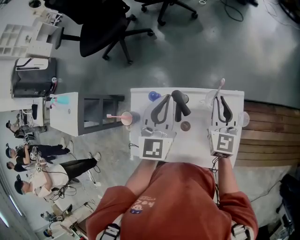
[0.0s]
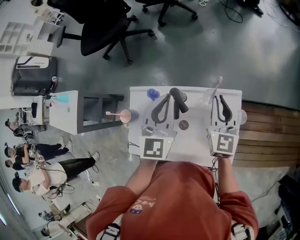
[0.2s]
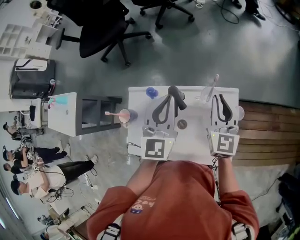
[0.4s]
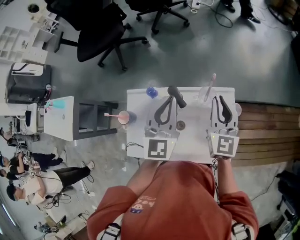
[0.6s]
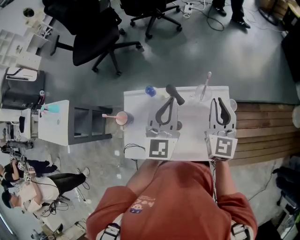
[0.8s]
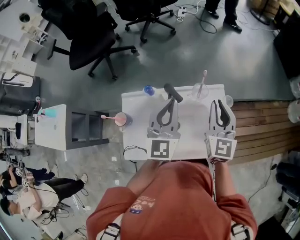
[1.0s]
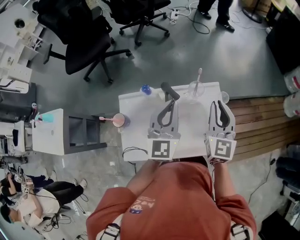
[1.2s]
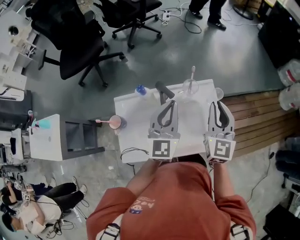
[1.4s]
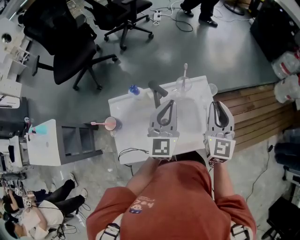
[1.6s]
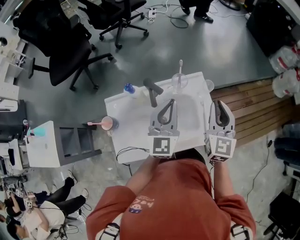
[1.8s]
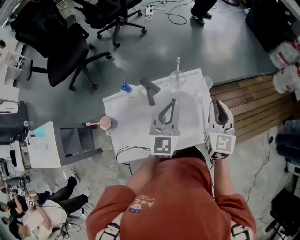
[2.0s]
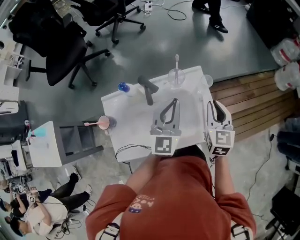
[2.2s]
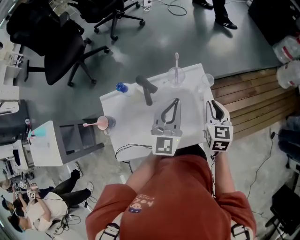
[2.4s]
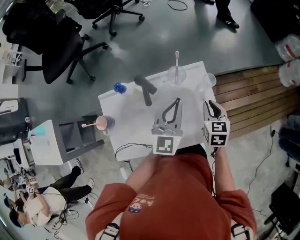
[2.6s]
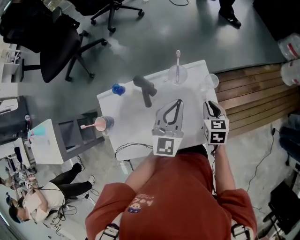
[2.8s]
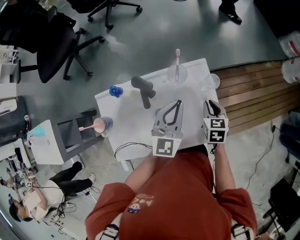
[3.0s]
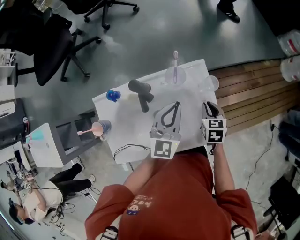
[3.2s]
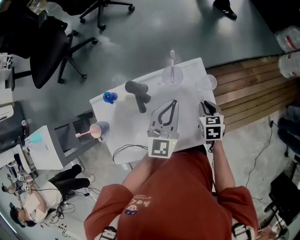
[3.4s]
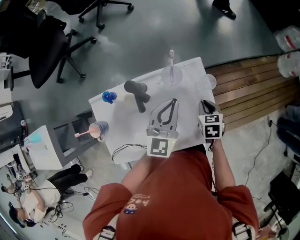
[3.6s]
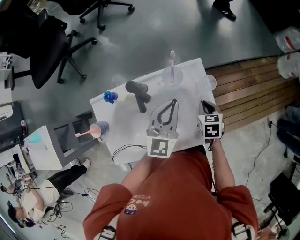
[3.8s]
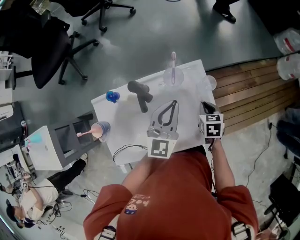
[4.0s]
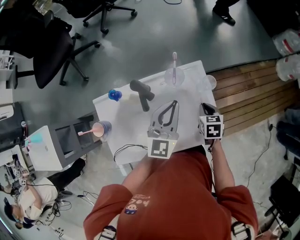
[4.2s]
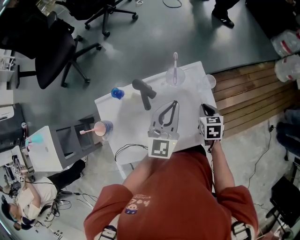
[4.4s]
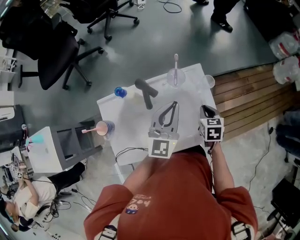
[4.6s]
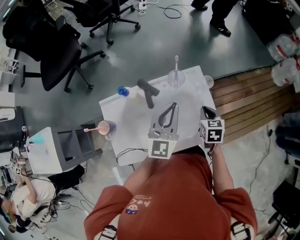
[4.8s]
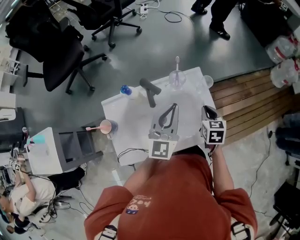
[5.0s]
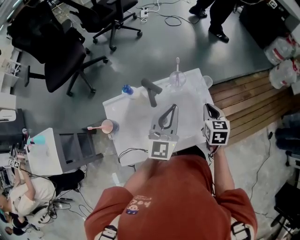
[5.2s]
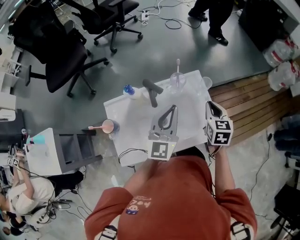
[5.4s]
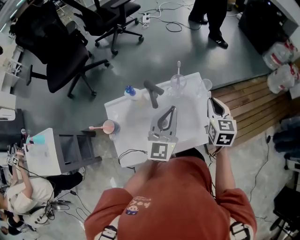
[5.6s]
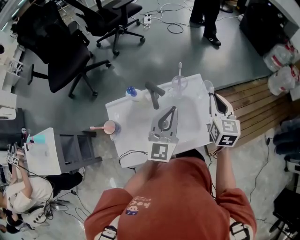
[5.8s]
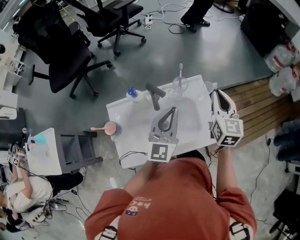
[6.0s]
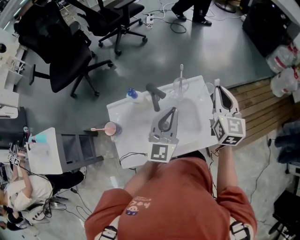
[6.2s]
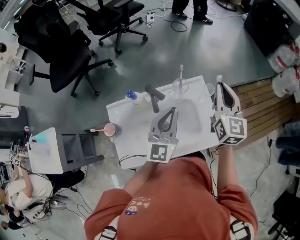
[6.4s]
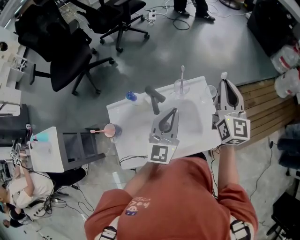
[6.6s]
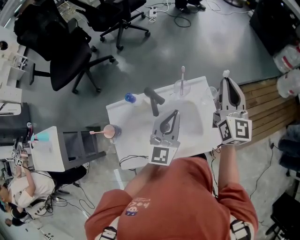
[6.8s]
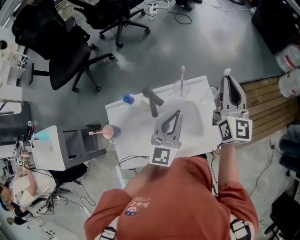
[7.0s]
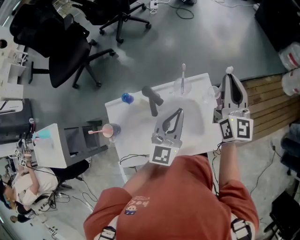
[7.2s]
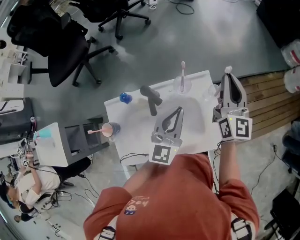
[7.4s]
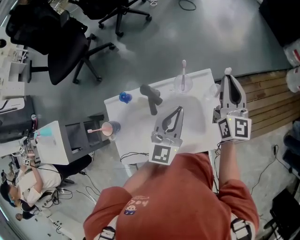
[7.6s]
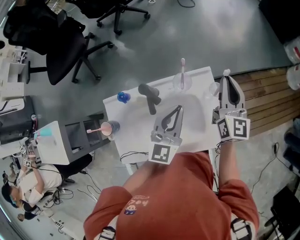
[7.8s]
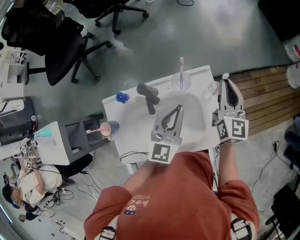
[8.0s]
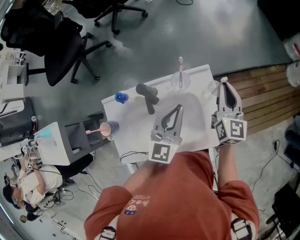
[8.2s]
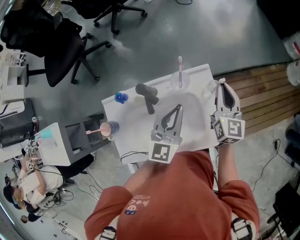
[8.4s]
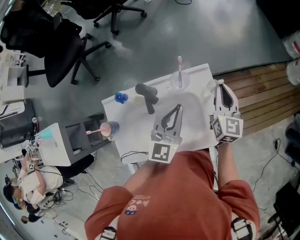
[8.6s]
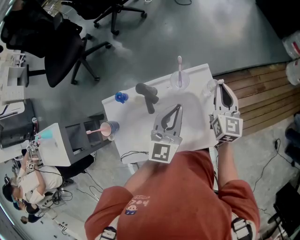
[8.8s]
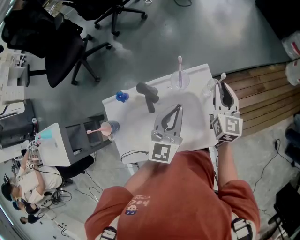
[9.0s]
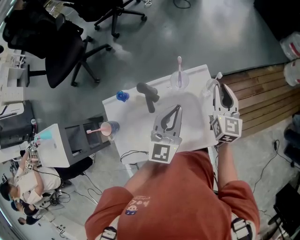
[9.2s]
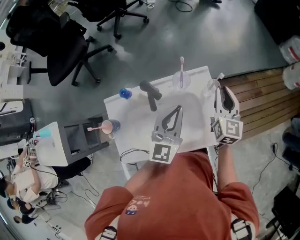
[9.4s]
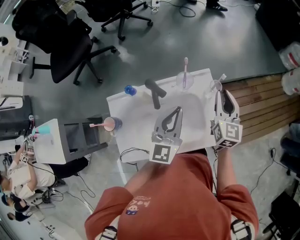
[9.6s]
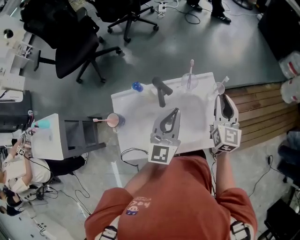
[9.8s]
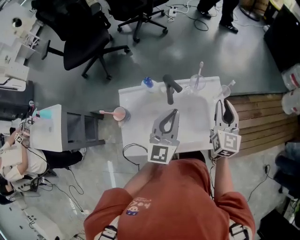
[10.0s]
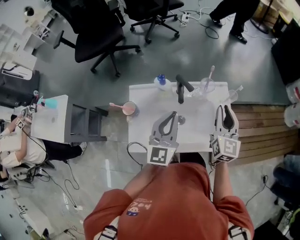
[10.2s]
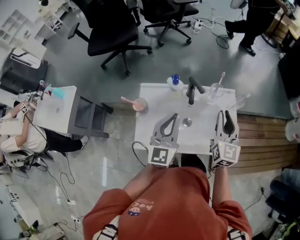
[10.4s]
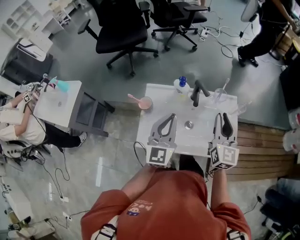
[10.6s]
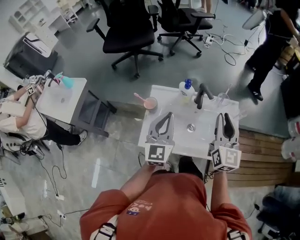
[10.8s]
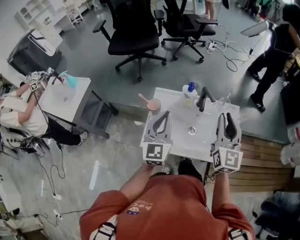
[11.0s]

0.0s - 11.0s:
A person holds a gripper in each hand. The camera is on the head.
0.0s - 1.6s: The left gripper goes some 15 cm backward and to the right, while the right gripper travels backward, upward and to the right by approximately 25 cm, and swivels about 20 degrees.
1.6s - 3.2s: The left gripper heads downward, forward and to the right, covering about 15 cm. Meanwhile the right gripper shifts about 25 cm downward, and angles its fingers downward, by about 40 degrees.
3.2s - 4.8s: Both grippers travel together upward, roughly 5 cm.
4.8s - 6.2s: The right gripper goes approximately 20 cm upward, and tips its fingers upward by approximately 40 degrees. Meanwhile the left gripper changes place by approximately 5 cm.
6.2s - 7.8s: The grippers both shift forward and downward by some 10 cm.
7.8s - 9.4s: The right gripper shifts by some 5 cm.
9.4s - 11.0s: The right gripper changes place by some 35 cm, and changes its angle by roughly 30 degrees, while the left gripper shifts by some 35 cm, and turns by approximately 30 degrees.

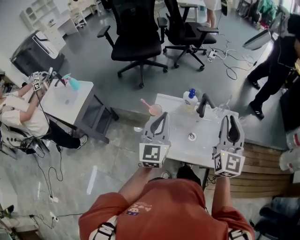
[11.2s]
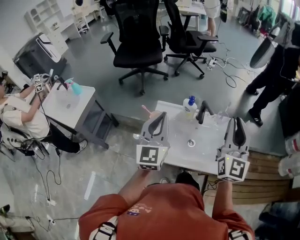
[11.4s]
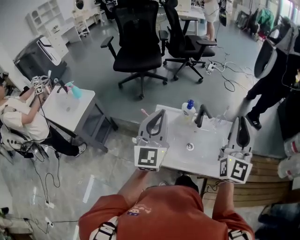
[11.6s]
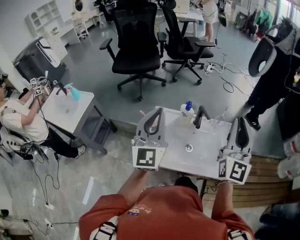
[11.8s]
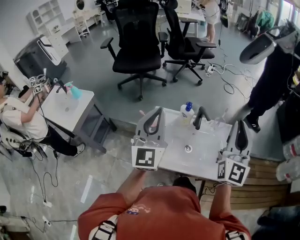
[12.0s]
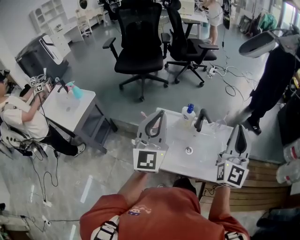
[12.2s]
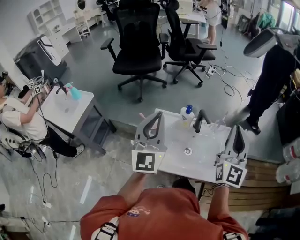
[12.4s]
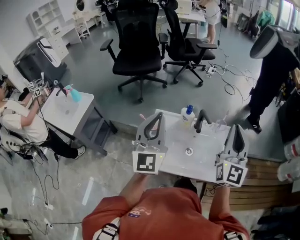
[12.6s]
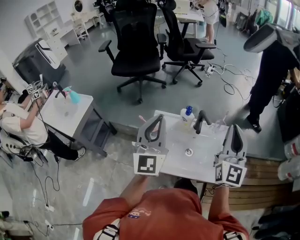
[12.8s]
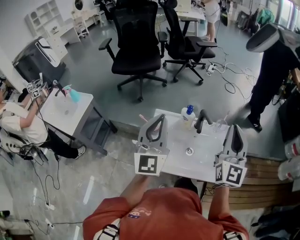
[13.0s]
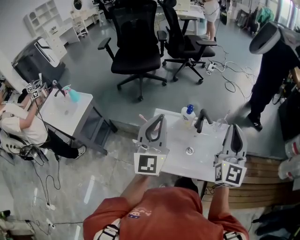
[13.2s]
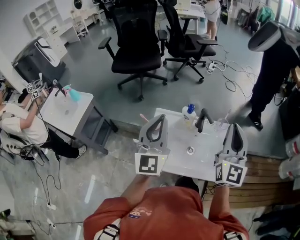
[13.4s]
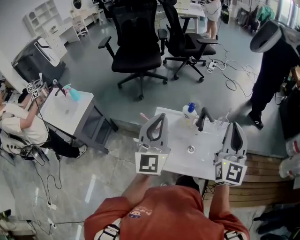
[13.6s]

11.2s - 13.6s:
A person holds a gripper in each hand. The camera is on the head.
11.2s - 12.4s: The left gripper is displaced upward by some 10 cm, while the right gripper shifts about 5 cm upward.
12.4s - 13.6s: The grippers move only a little.

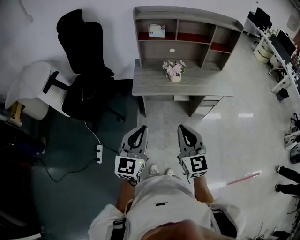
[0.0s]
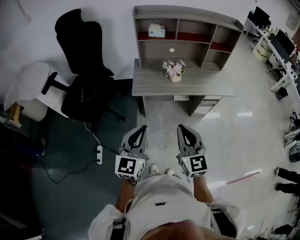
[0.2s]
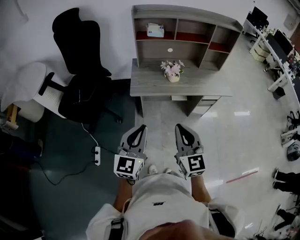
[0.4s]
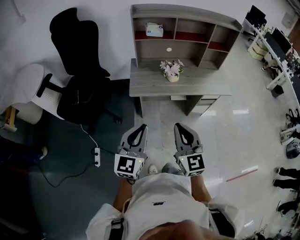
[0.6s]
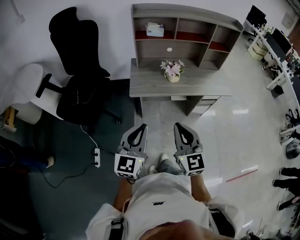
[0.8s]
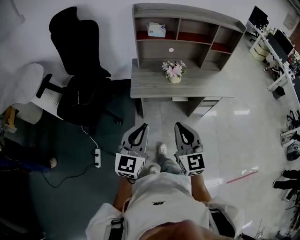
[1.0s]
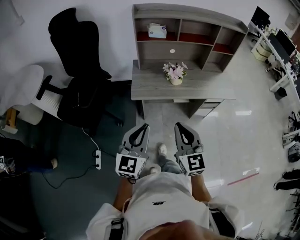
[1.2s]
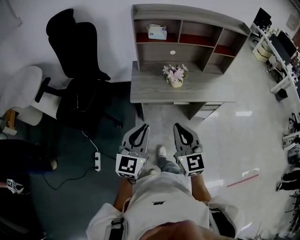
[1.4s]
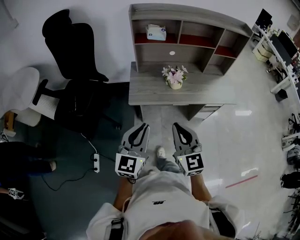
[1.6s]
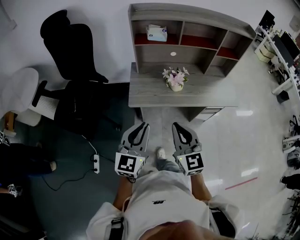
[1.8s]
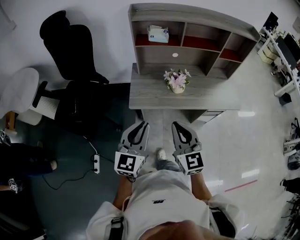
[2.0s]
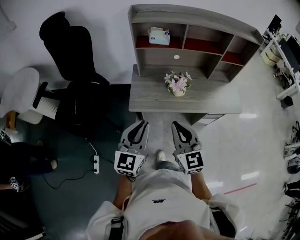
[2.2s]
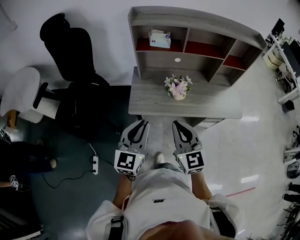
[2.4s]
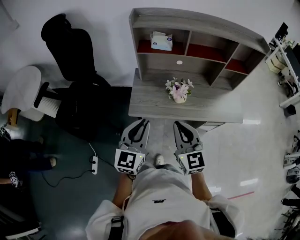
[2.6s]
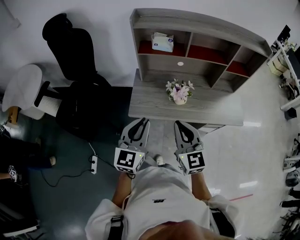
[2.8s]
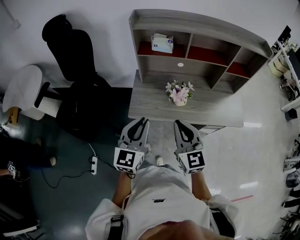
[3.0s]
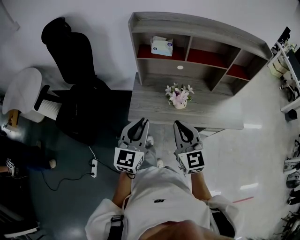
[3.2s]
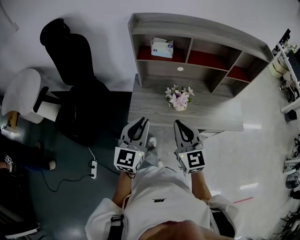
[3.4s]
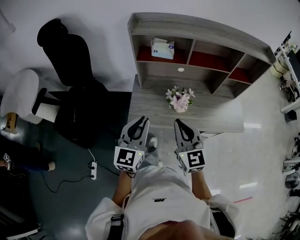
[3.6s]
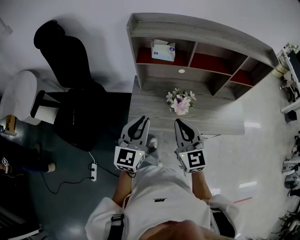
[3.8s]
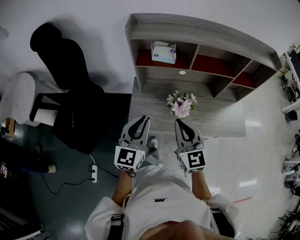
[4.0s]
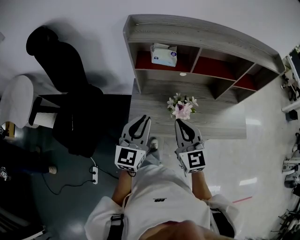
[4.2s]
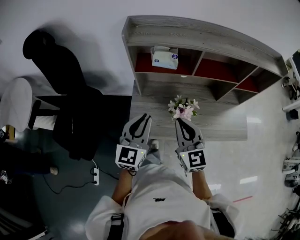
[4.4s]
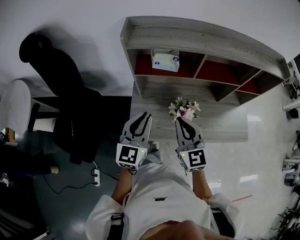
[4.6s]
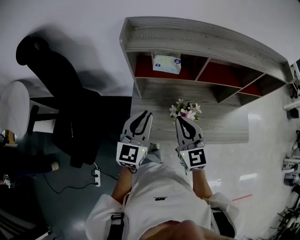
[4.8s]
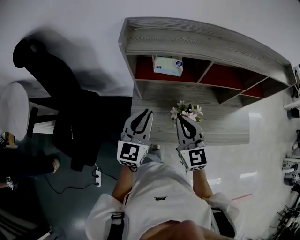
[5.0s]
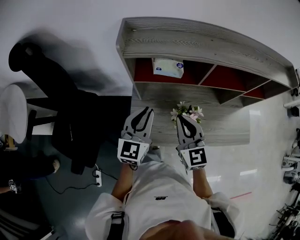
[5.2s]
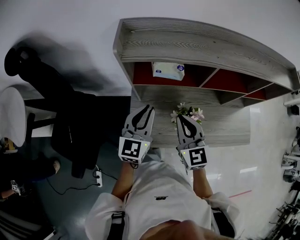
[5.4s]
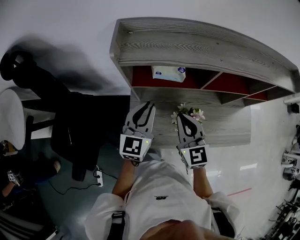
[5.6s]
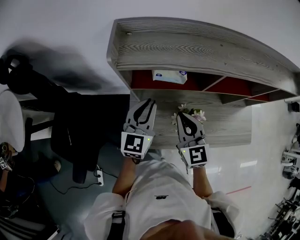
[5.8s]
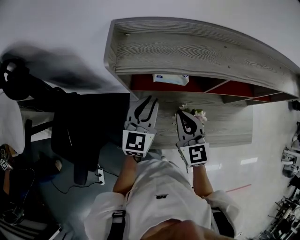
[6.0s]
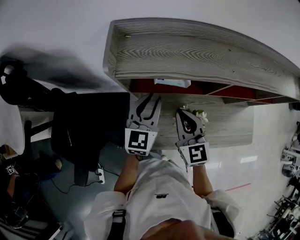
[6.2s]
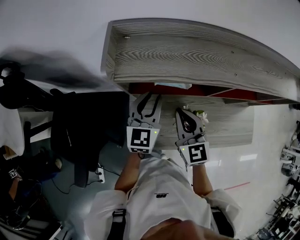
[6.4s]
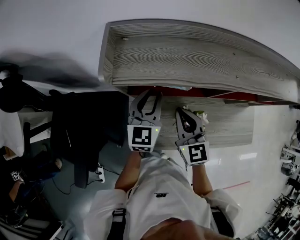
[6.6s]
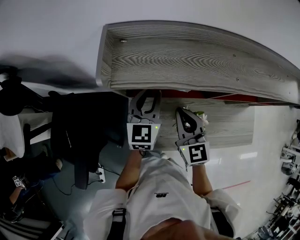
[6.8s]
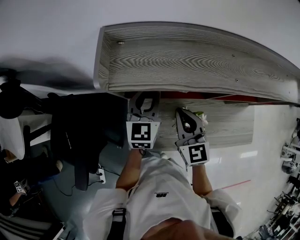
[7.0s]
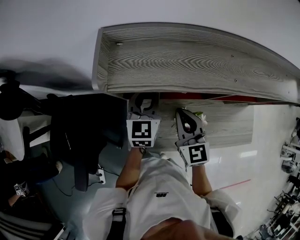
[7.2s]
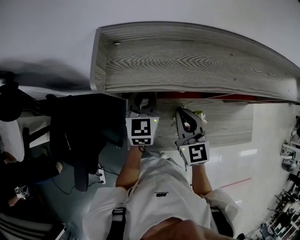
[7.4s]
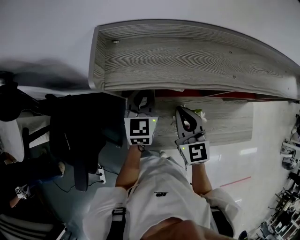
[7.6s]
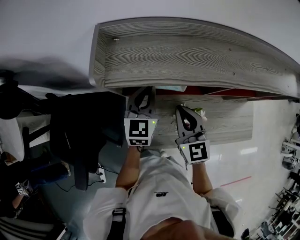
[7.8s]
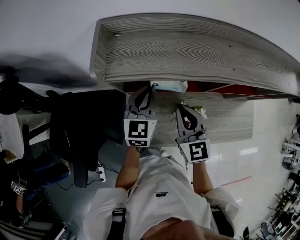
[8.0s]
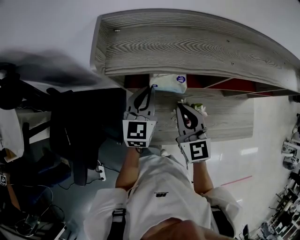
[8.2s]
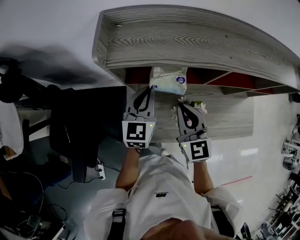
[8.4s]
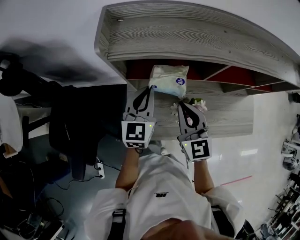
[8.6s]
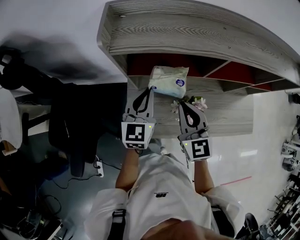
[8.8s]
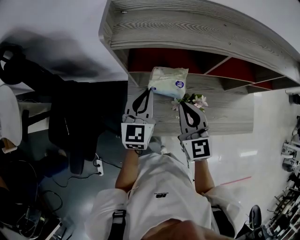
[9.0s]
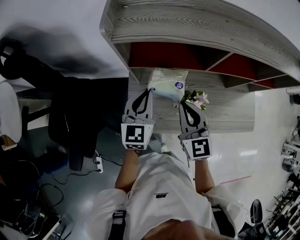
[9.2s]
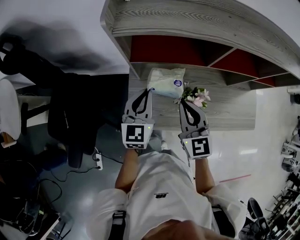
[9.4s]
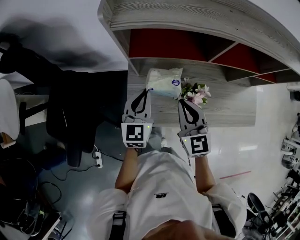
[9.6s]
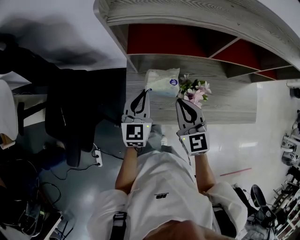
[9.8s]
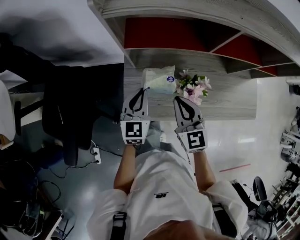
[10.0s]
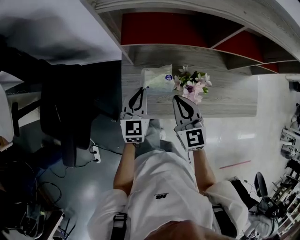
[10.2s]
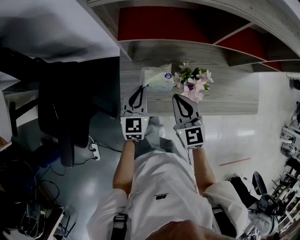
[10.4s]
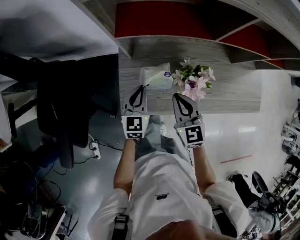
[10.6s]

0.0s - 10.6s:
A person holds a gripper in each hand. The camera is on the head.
0.0s - 1.6s: The grippers both shift forward by about 15 cm.
1.6s - 3.0s: Both grippers travel together forward, about 15 cm.
3.0s - 4.6s: The grippers both shift forward by some 20 cm.
4.6s - 6.0s: The two grippers go roughly 15 cm forward.
6.0s - 7.6s: The left gripper shifts roughly 10 cm forward.
7.6s - 9.0s: The two grippers go roughly 10 cm backward.
9.0s - 10.6s: The grippers both shift downward by about 20 cm.
